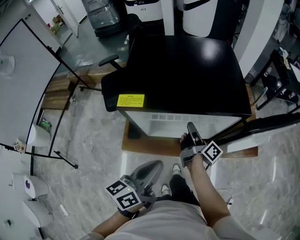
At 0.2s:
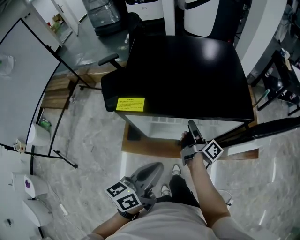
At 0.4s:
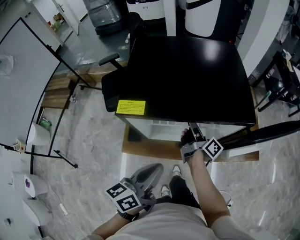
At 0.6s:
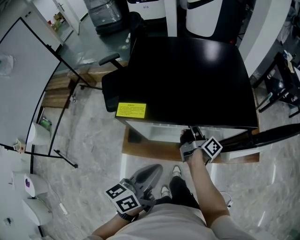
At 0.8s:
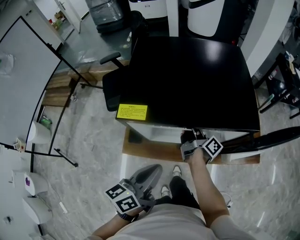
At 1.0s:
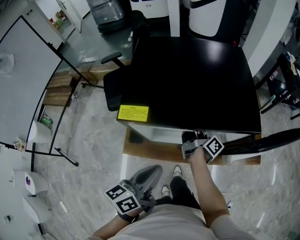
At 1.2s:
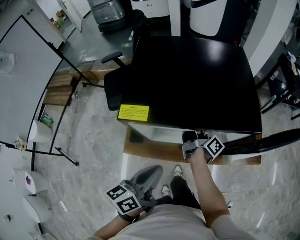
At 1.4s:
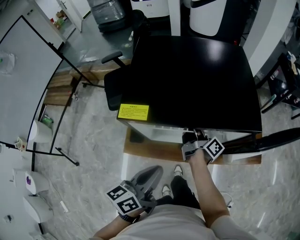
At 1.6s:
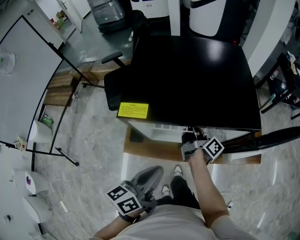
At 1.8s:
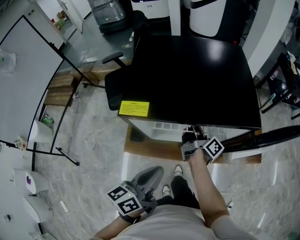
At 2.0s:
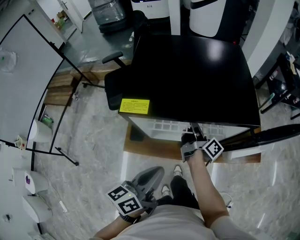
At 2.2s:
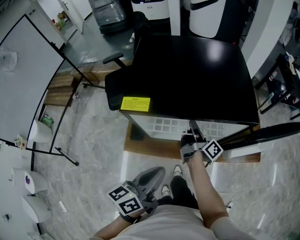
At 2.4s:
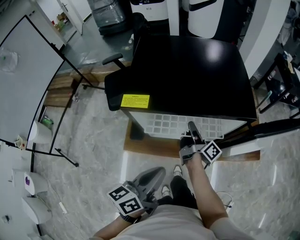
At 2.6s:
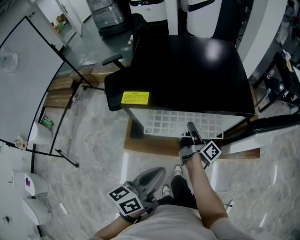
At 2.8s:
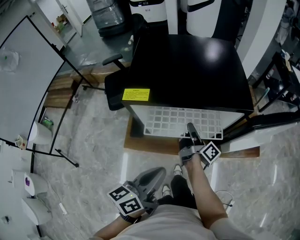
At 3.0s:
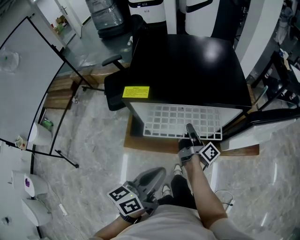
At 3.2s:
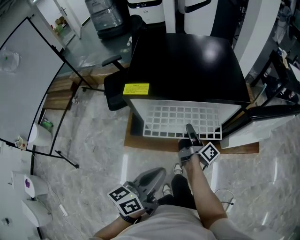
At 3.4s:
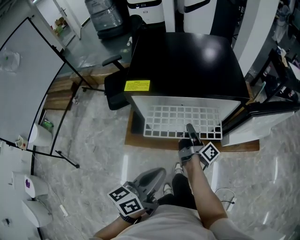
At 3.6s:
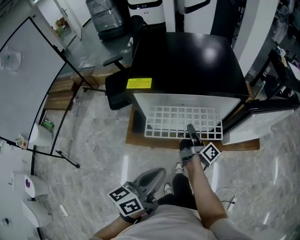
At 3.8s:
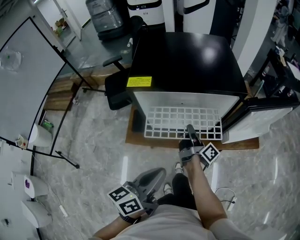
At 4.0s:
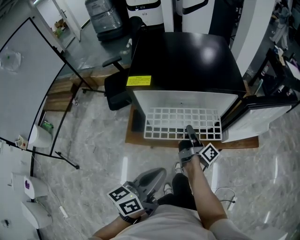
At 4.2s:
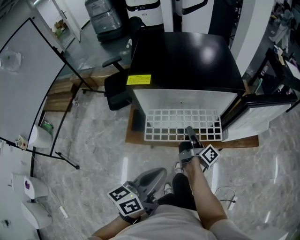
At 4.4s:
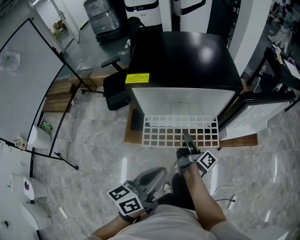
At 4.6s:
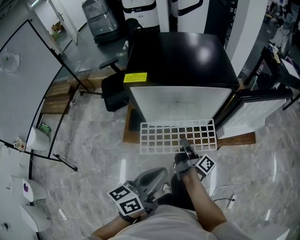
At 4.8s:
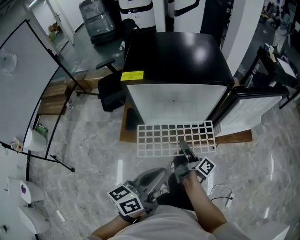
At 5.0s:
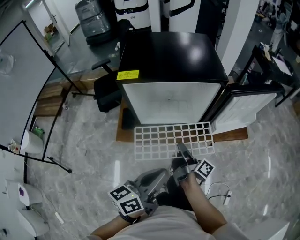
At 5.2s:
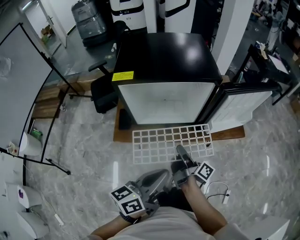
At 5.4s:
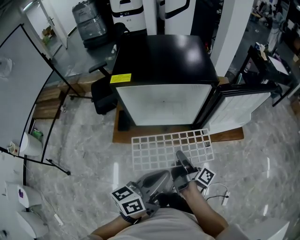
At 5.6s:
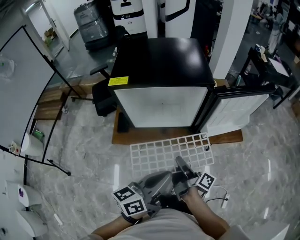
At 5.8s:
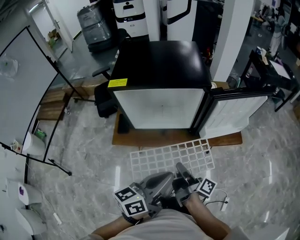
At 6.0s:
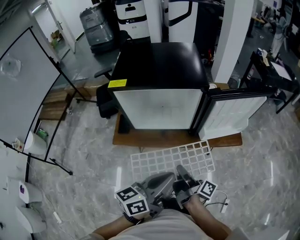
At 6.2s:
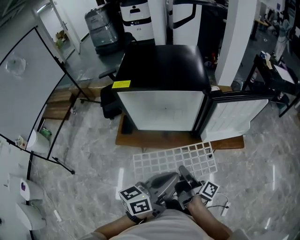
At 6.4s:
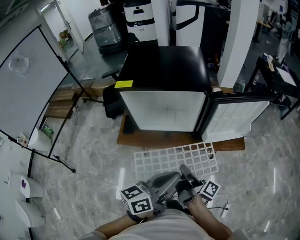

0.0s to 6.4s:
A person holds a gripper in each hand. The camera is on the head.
1.6s to 3.2s: The left gripper shifts by approximately 10 cm.
3.2s to 4.8s: The left gripper ends up roughly 5 cm from where it was.
4.8s to 6.4s: The left gripper moves some 15 cm.

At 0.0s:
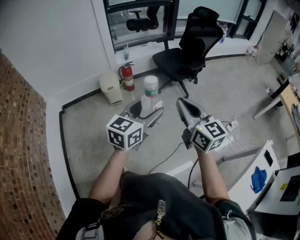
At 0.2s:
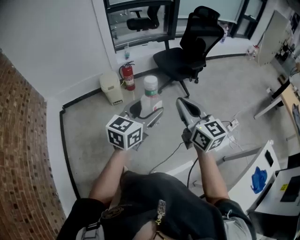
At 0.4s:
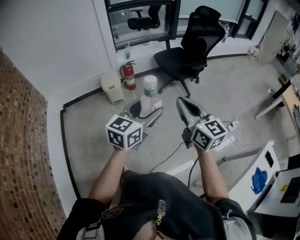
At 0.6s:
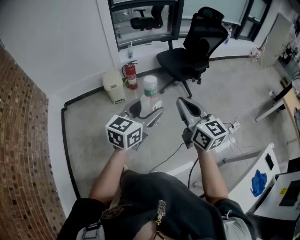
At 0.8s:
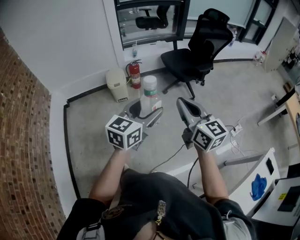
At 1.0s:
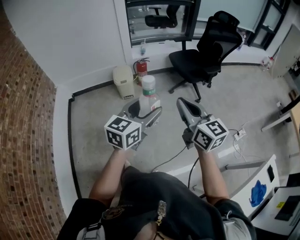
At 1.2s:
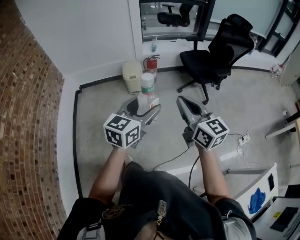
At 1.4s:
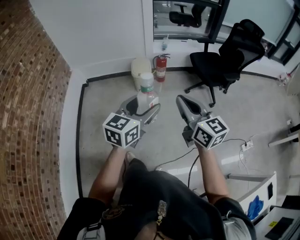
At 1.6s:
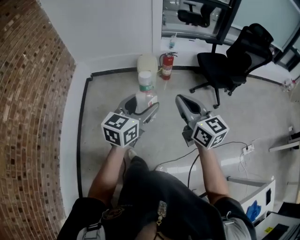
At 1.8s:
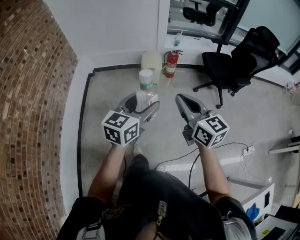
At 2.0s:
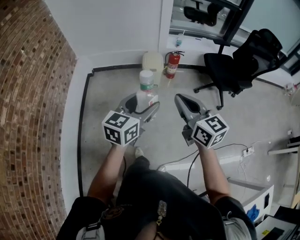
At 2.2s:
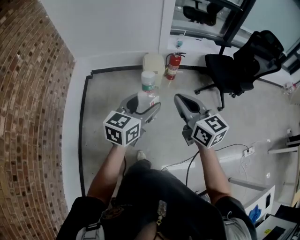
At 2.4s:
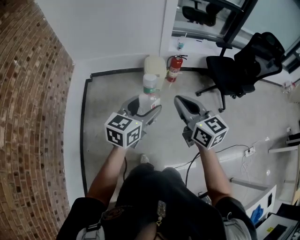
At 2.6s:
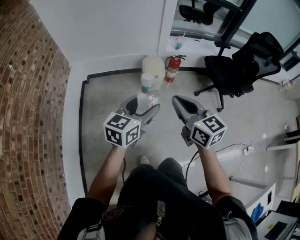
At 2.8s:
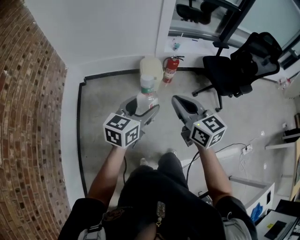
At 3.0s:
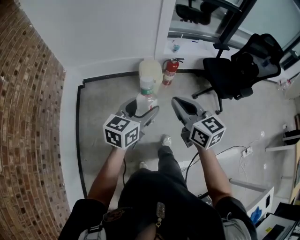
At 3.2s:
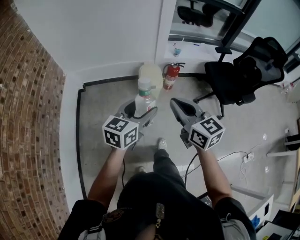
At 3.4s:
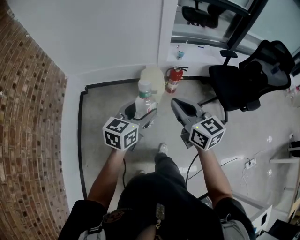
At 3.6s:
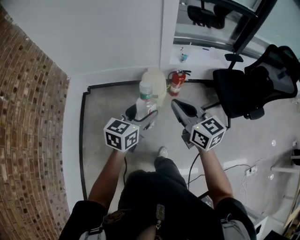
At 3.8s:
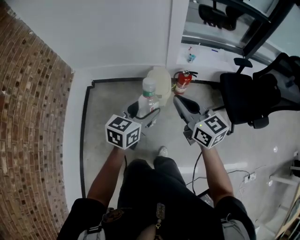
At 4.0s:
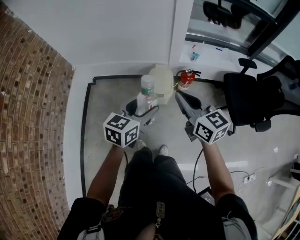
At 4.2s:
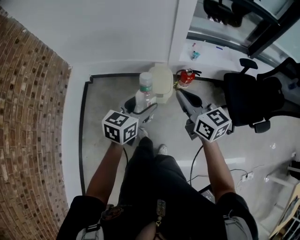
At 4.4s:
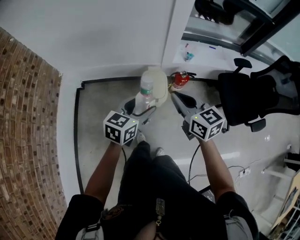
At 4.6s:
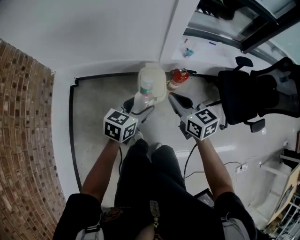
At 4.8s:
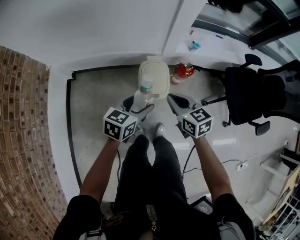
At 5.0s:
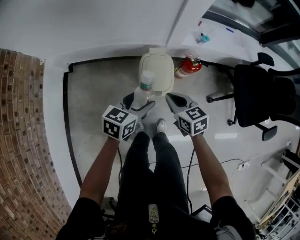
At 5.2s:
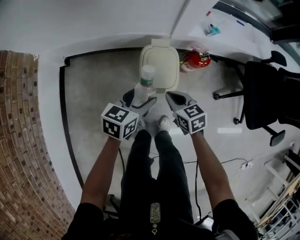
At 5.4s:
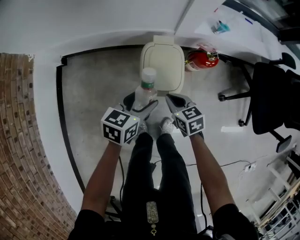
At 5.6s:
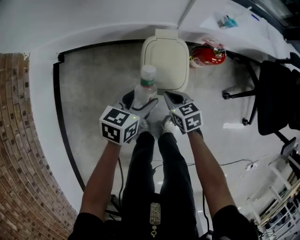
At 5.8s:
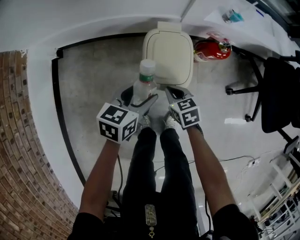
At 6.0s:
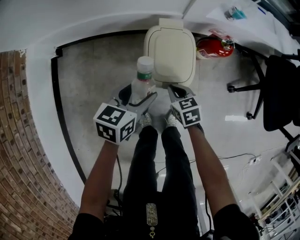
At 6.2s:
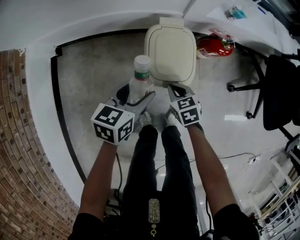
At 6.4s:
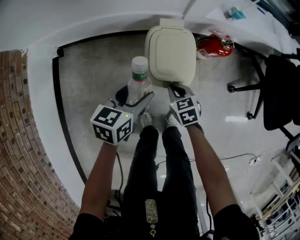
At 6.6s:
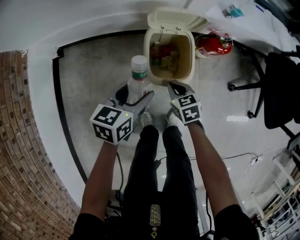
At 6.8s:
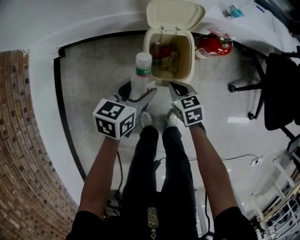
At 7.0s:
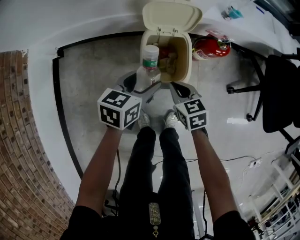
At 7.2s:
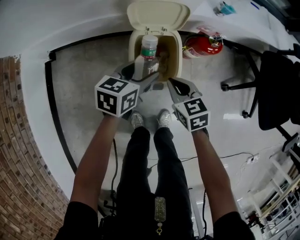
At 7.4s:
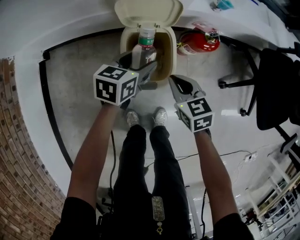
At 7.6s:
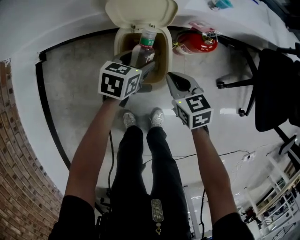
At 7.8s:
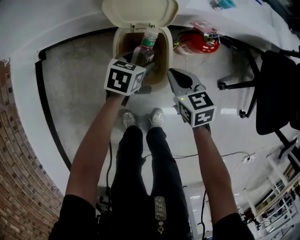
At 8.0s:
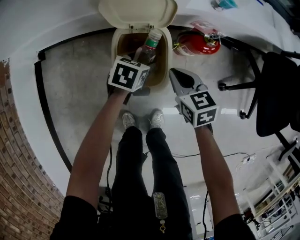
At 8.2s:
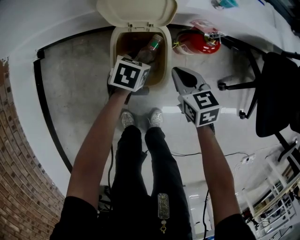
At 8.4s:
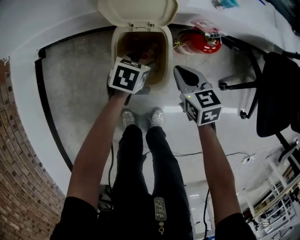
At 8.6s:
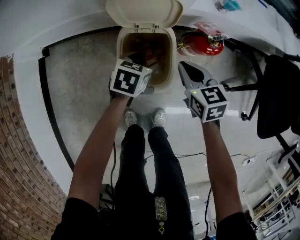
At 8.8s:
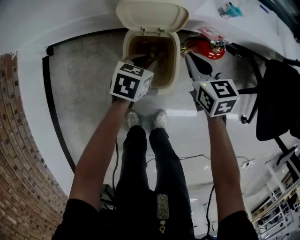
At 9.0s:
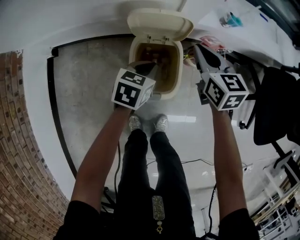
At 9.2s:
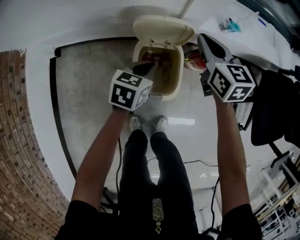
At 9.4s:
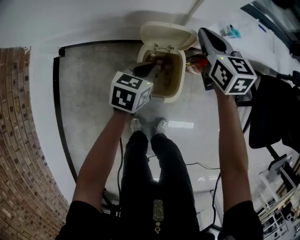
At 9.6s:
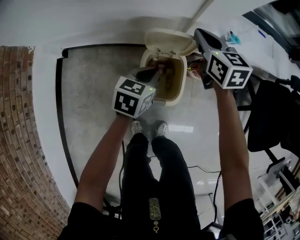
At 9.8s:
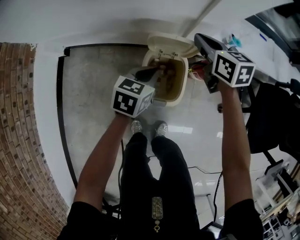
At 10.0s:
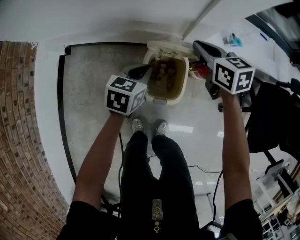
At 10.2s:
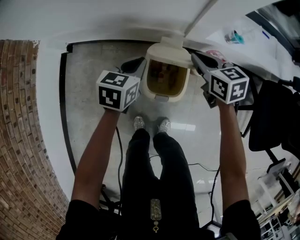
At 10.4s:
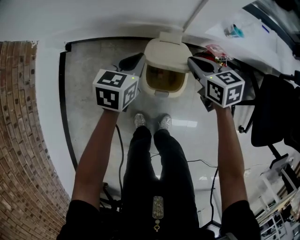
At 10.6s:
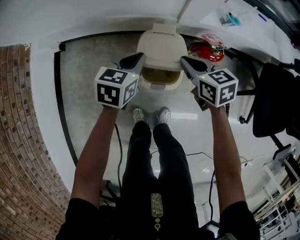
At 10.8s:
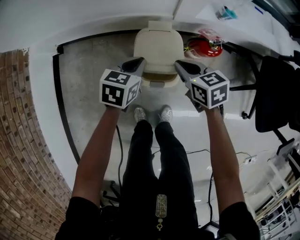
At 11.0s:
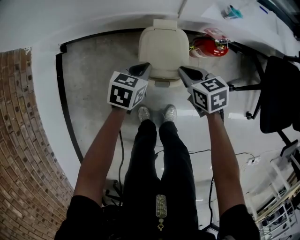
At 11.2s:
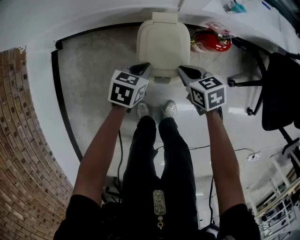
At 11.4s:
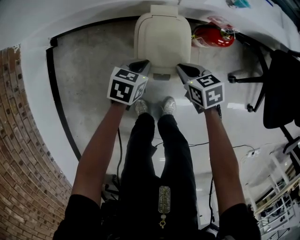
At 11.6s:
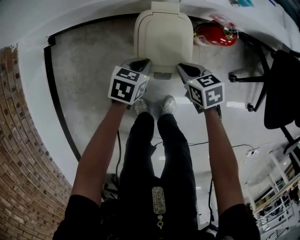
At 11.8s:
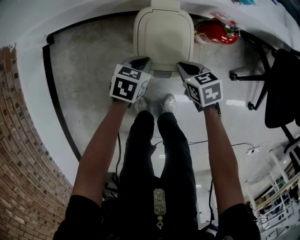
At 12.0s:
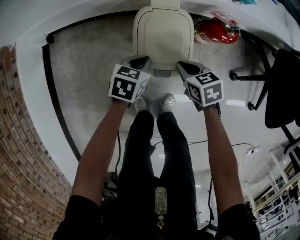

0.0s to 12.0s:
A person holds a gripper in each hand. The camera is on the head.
0.0s to 1.6s: Both grippers move to the left, about 15 cm. The left gripper swivels approximately 20 degrees; the right gripper changes its angle by approximately 20 degrees.
1.6s to 3.0s: The grippers both shift forward and to the left by about 25 cm.
3.0s to 4.4s: Both grippers travel together forward, about 30 cm.
4.4s to 6.0s: Both grippers move downward, some 40 cm. The right gripper tilts its fingers about 40 degrees downward.
6.0s to 7.6s: The left gripper shifts about 15 cm forward, to the right and downward; the right gripper goes some 10 cm to the right, forward and upward.
7.6s to 9.0s: The right gripper shifts roughly 15 cm forward and upward. The left gripper closes.
9.0s to 10.4s: The right gripper is displaced to the left by roughly 5 cm, goes forward and returns, approximately 10 cm each way, and changes its angle by approximately 20 degrees; the left gripper shifts approximately 15 cm upward and to the left.
10.4s to 12.0s: The grippers both shift downward and backward by about 20 cm.

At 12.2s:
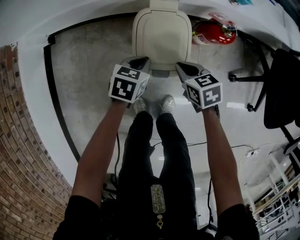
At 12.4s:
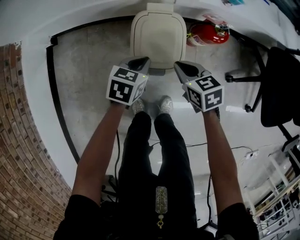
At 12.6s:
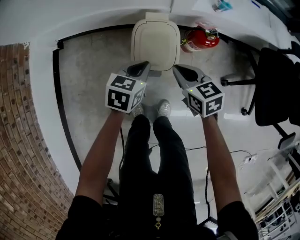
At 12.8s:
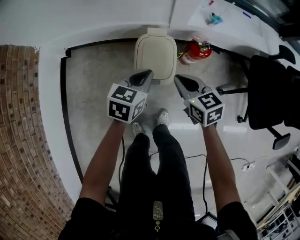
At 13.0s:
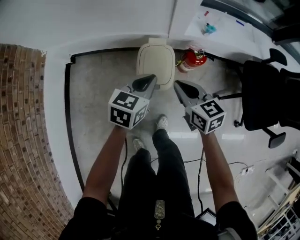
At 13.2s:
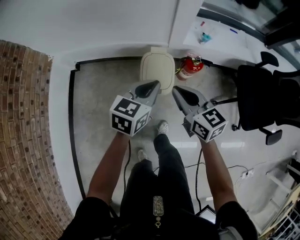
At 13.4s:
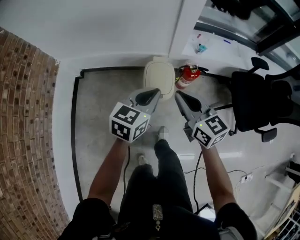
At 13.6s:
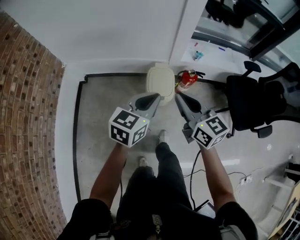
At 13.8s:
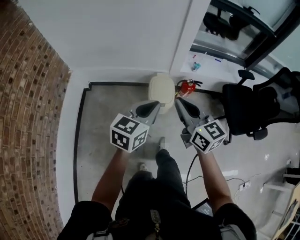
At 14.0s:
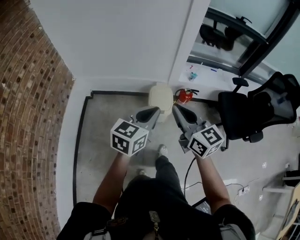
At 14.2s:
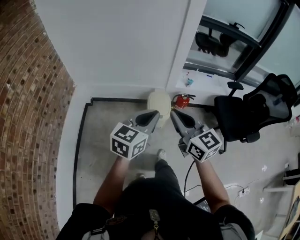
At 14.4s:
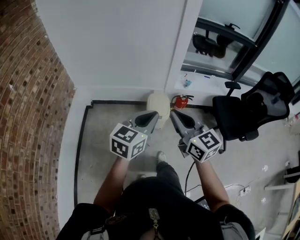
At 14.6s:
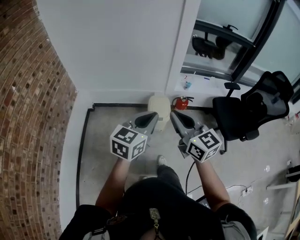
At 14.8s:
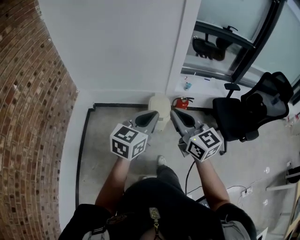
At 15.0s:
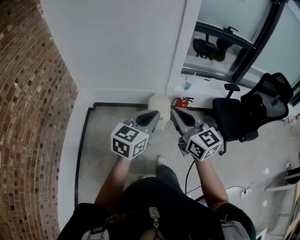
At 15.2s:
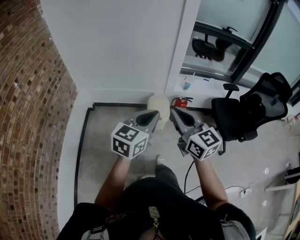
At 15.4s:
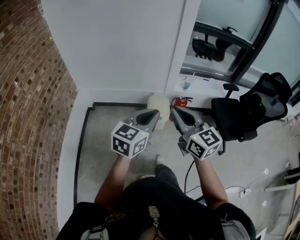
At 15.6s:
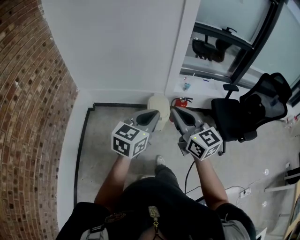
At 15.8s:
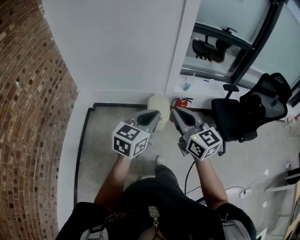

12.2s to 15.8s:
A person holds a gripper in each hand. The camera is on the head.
12.2s to 14.0s: The two grippers go roughly 60 cm upward and backward. The left gripper tips its fingers upward by roughly 40 degrees. Meanwhile the right gripper points its fingers about 50 degrees further upward.
14.0s to 15.8s: Both grippers move backward and upward, some 10 cm.

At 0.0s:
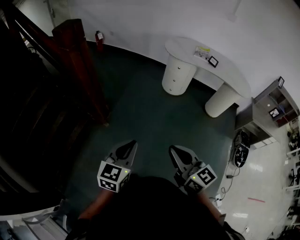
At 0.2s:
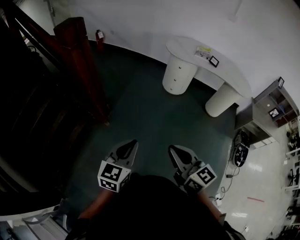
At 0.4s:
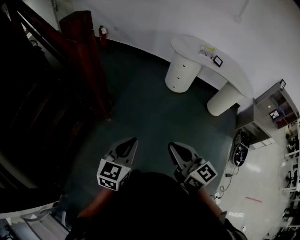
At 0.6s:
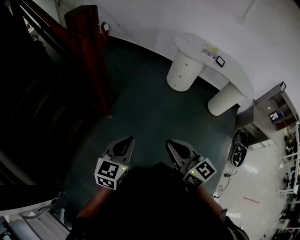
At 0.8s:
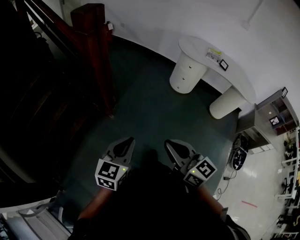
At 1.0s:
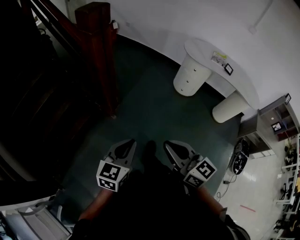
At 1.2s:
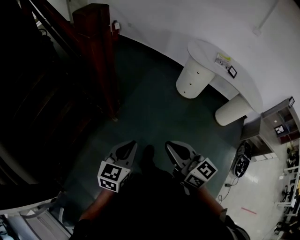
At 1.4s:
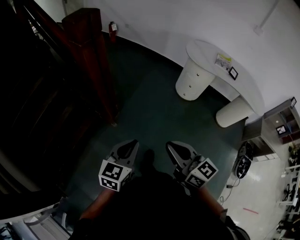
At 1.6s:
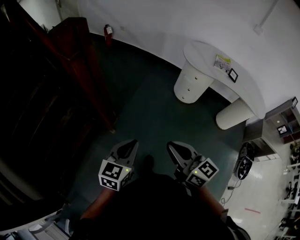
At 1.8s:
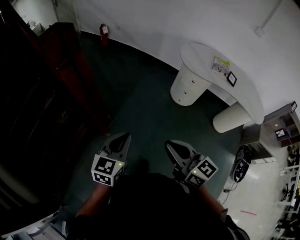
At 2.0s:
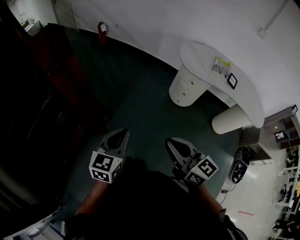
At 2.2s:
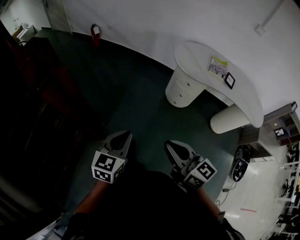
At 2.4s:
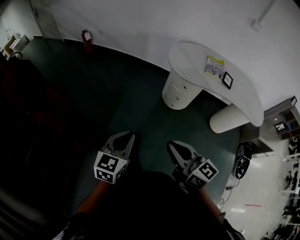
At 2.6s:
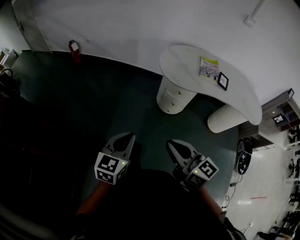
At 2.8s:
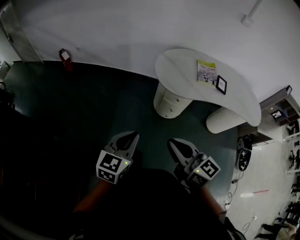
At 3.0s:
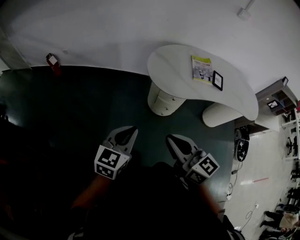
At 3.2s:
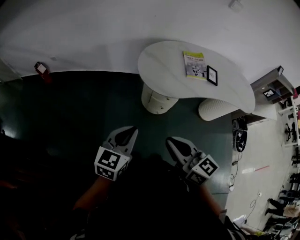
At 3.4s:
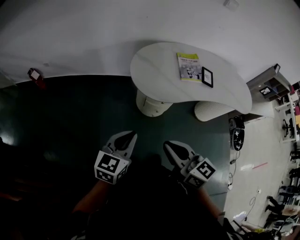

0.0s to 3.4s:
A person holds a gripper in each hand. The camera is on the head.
0.0s to 1.6s: Both grippers move forward, approximately 20 cm.
1.6s to 3.4s: Both grippers are carried roughly 60 cm. The right gripper swivels some 30 degrees, while the left gripper changes its angle by some 30 degrees.
